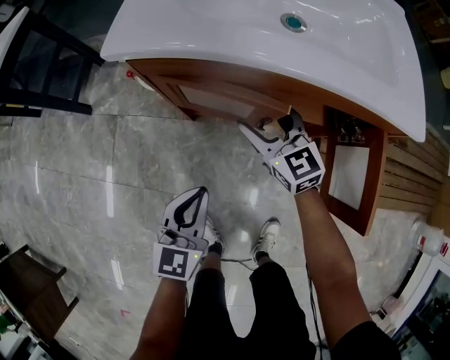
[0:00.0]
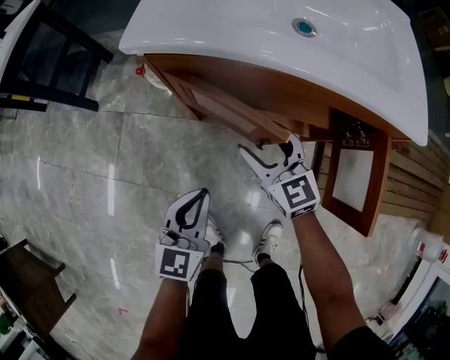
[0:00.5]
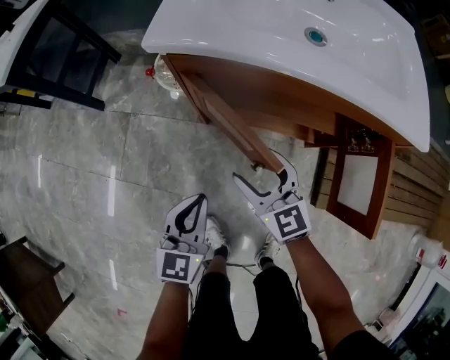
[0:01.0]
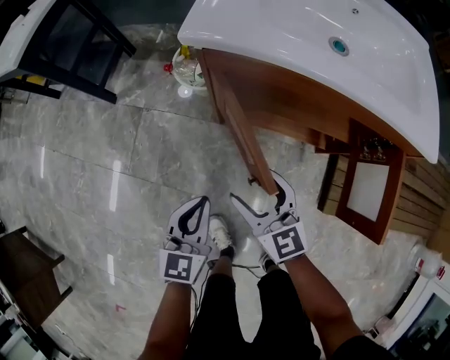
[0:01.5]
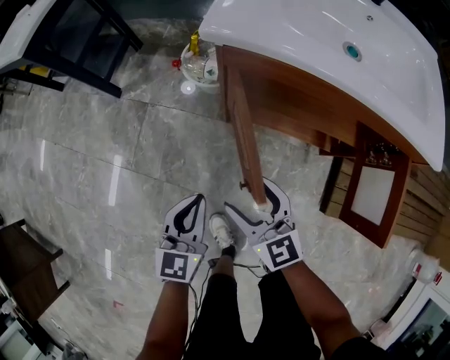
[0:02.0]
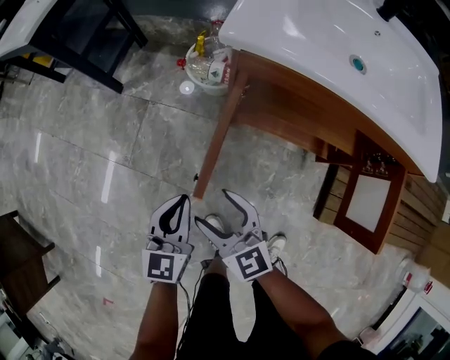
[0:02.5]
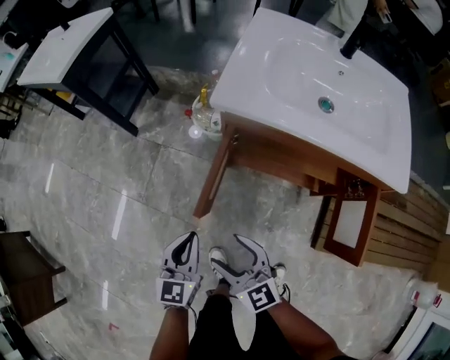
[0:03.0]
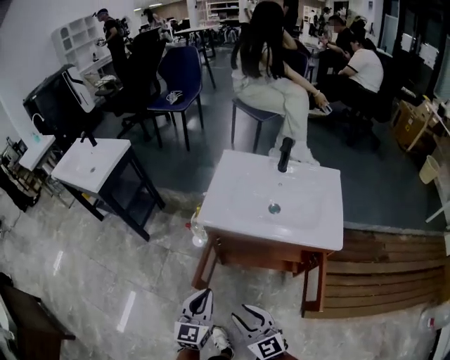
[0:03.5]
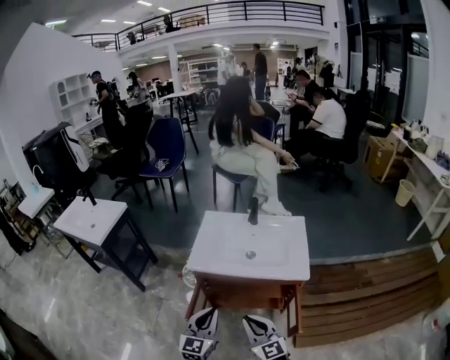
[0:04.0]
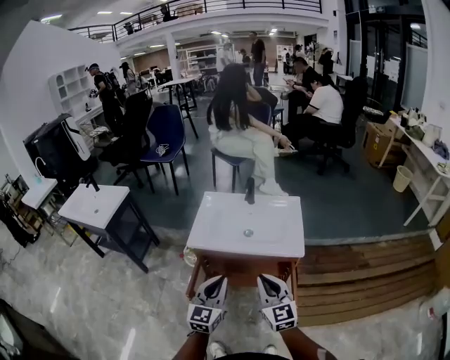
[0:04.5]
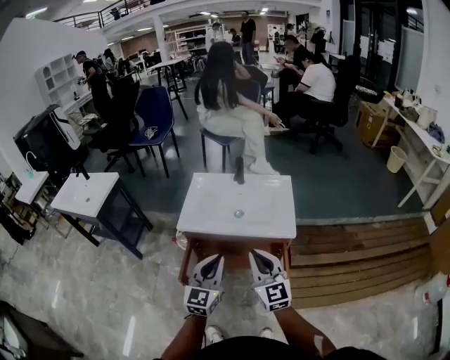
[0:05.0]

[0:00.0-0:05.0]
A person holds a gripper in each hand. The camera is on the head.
0:00.0 to 0:02.5: The right gripper is displaced to the left and backward by roughly 30 cm, while the left gripper heads to the left, covering some 15 cm.
0:02.5 to 0:05.0: The grippers both shift upward by some 40 cm. The left gripper changes its angle by roughly 30 degrees. The right gripper rotates approximately 40 degrees, and closes.

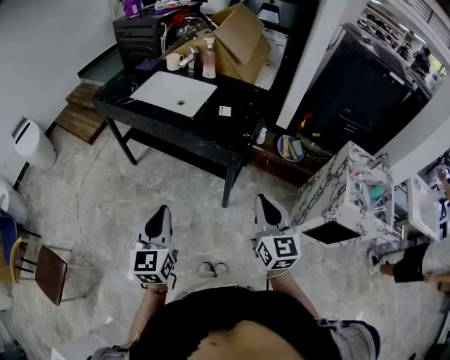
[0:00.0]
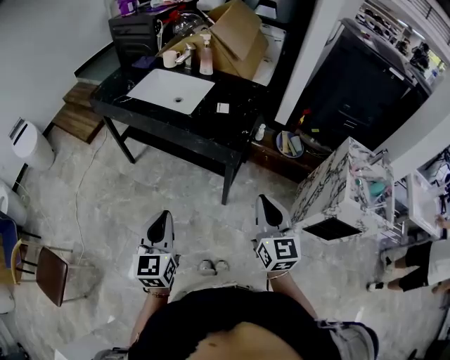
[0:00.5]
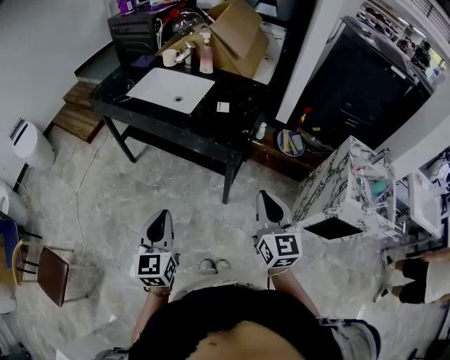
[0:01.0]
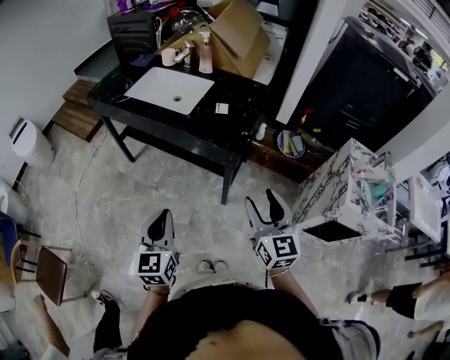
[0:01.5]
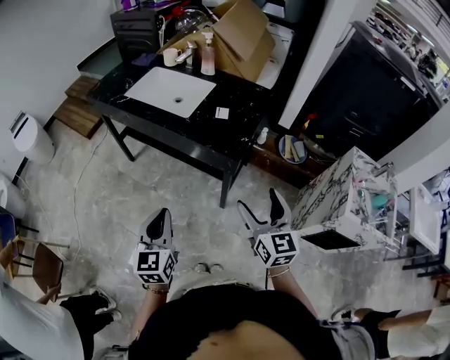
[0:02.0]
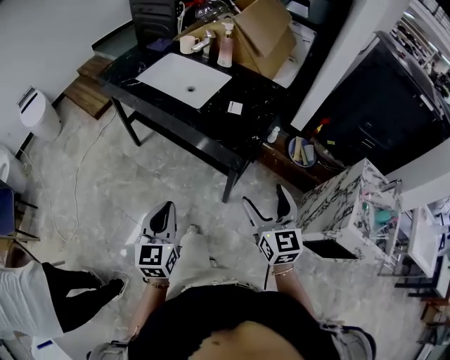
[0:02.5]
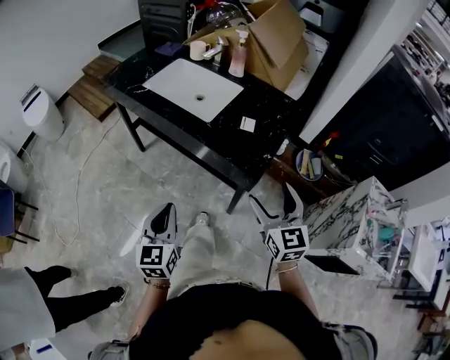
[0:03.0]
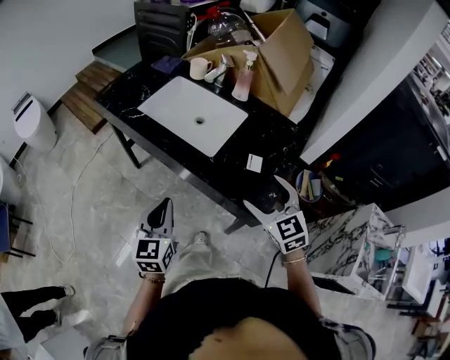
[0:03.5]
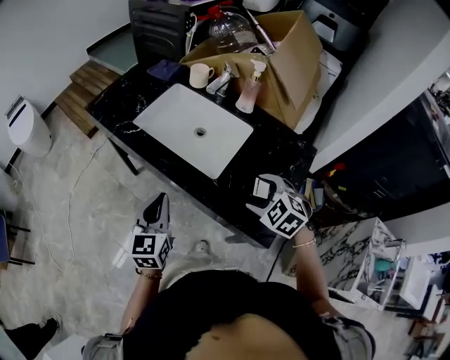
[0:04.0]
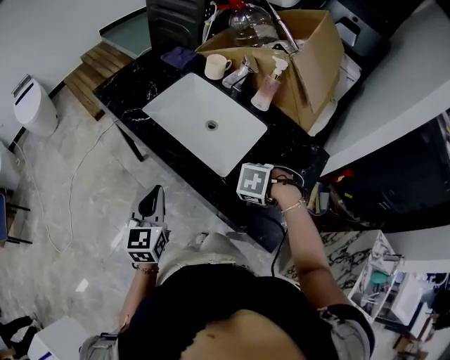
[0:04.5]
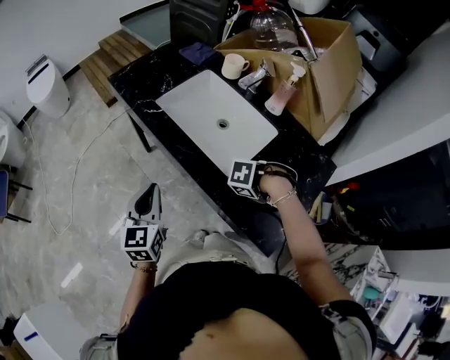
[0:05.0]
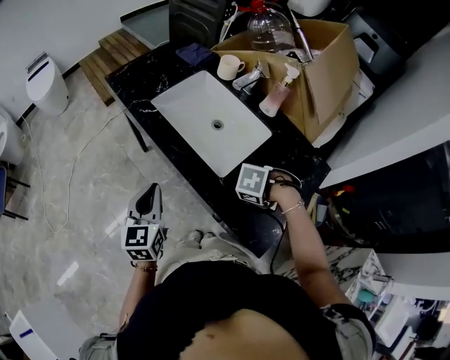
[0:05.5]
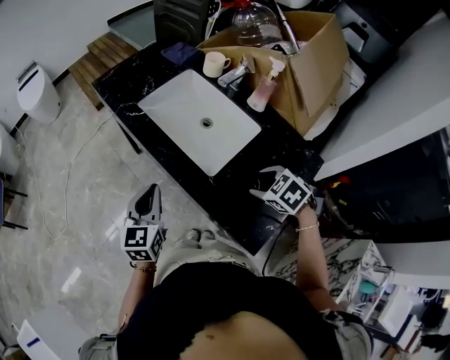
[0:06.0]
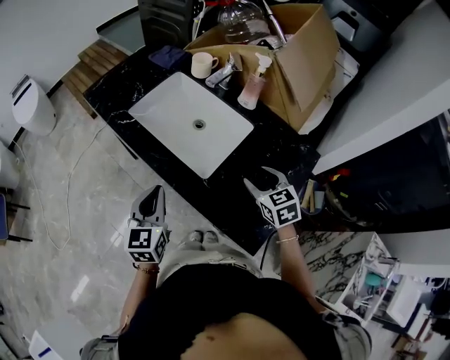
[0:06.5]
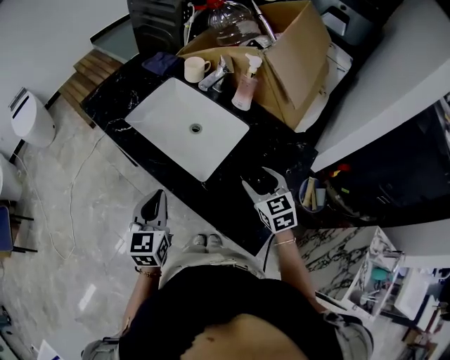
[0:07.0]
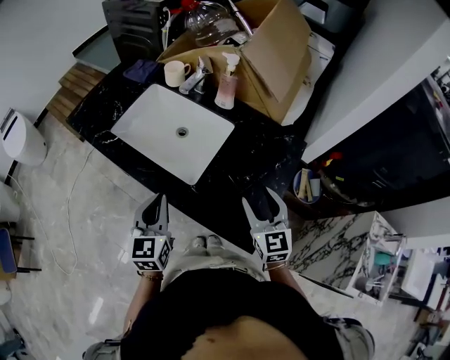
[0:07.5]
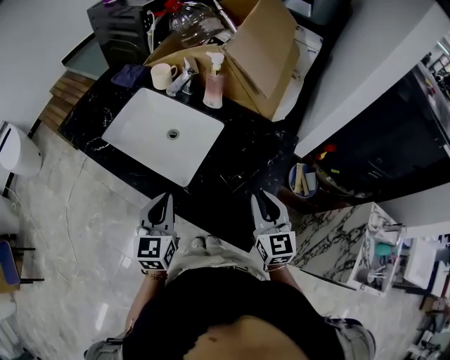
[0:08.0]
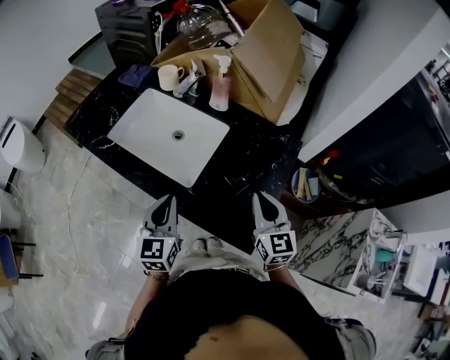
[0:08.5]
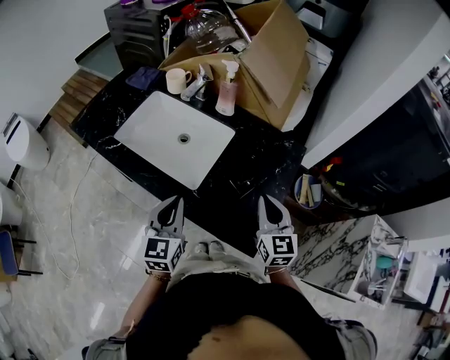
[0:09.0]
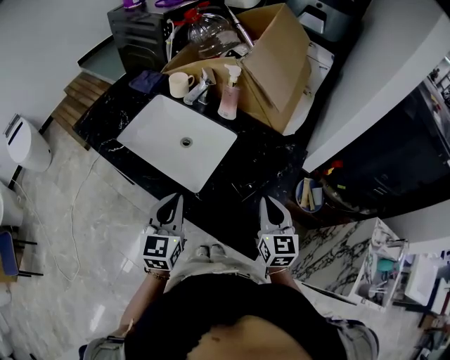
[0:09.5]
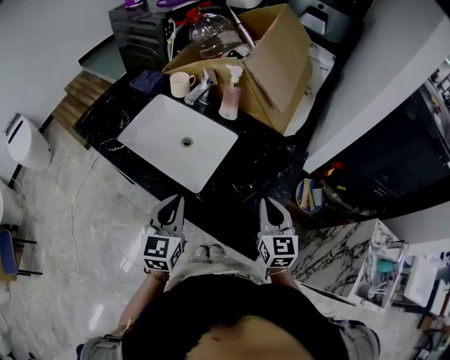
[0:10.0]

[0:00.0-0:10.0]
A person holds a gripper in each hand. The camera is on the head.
0:00.0 to 0:02.0: The right gripper is displaced forward by about 5 cm, and opens up. Meanwhile the left gripper changes place by some 5 cm.
0:02.0 to 0:04.0: Both grippers move forward, some 35 cm. The right gripper tips its fingers downward by roughly 40 degrees.
0:04.0 to 0:06.0: The right gripper travels downward and back again, some 10 cm each way.
0:06.0 to 0:08.0: The left gripper ends up approximately 10 cm from where it was; the right gripper moves roughly 10 cm, and points its fingers about 50 degrees further upward.
0:08.0 to 0:10.0: The grippers stay close to where they were, moving slightly.

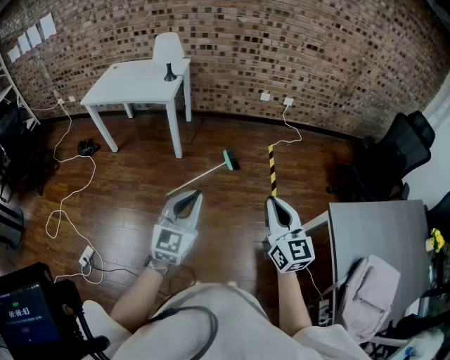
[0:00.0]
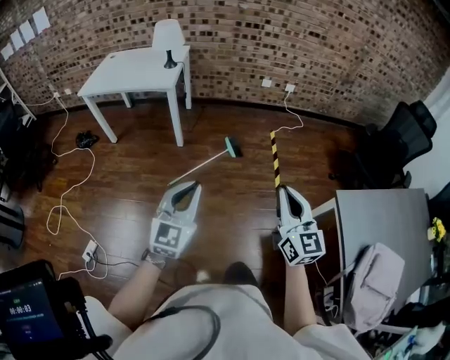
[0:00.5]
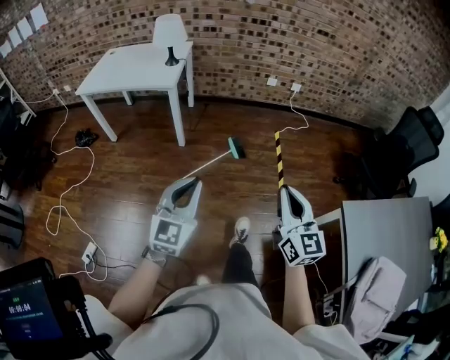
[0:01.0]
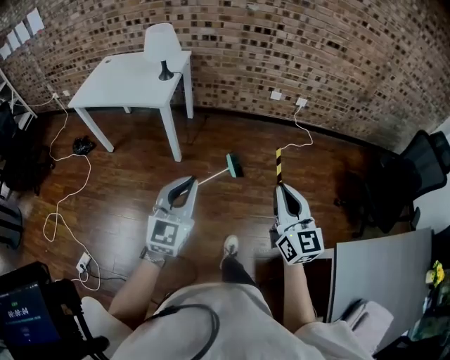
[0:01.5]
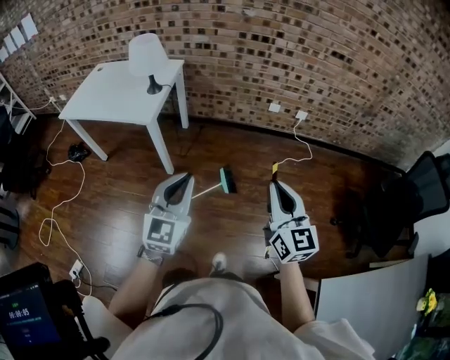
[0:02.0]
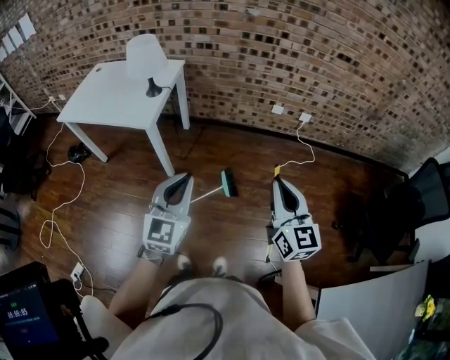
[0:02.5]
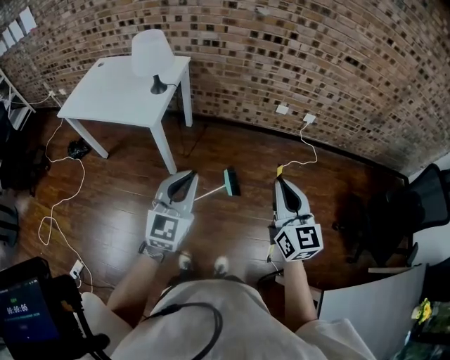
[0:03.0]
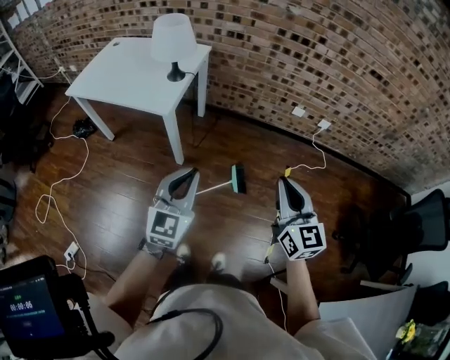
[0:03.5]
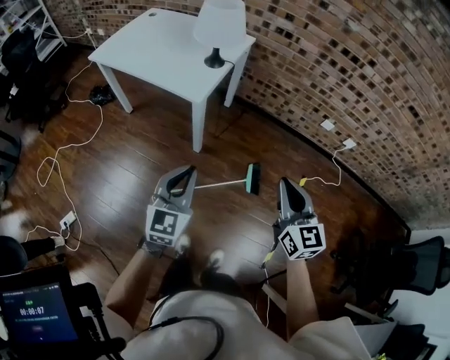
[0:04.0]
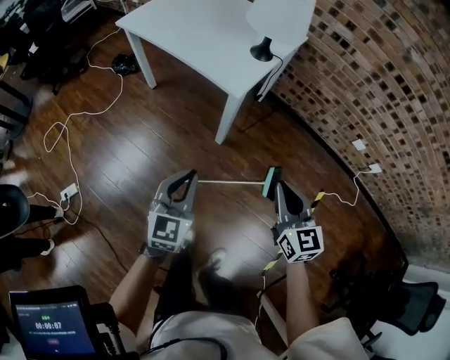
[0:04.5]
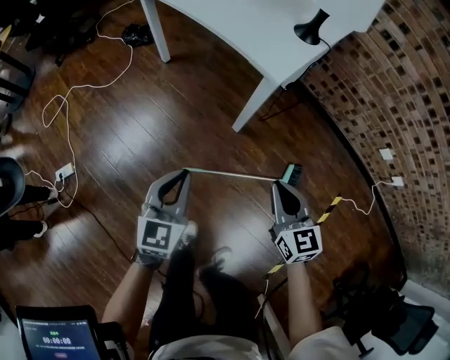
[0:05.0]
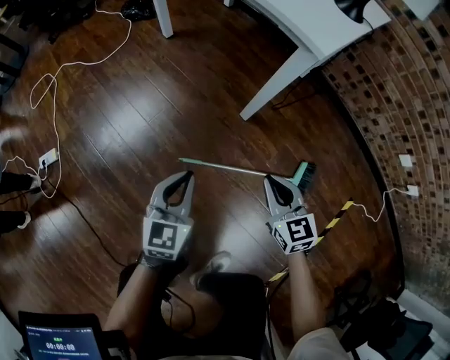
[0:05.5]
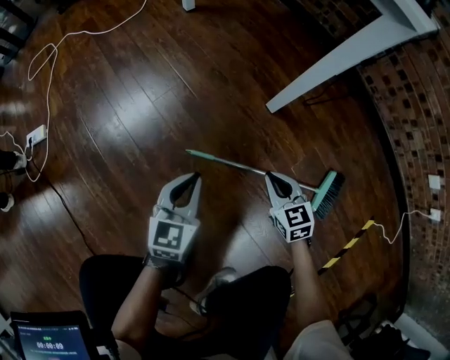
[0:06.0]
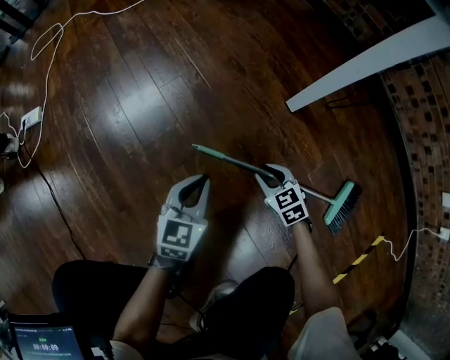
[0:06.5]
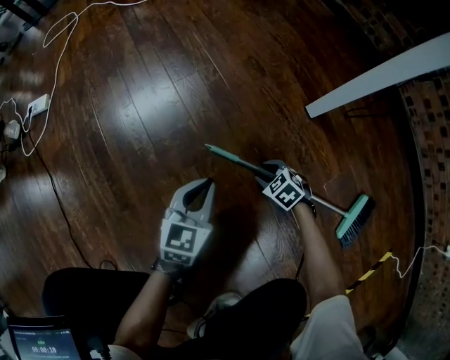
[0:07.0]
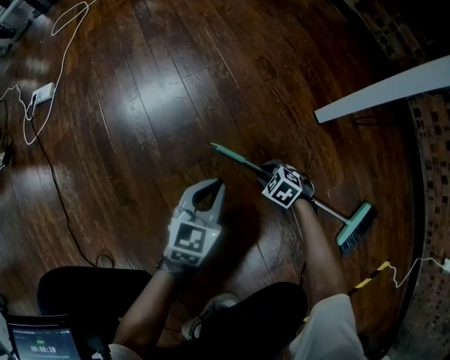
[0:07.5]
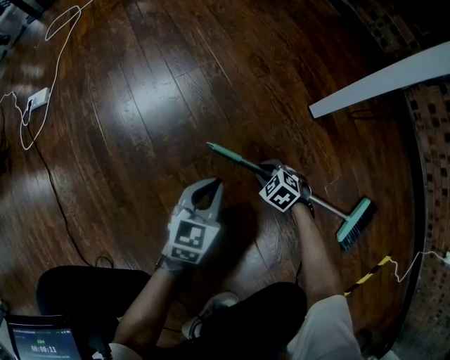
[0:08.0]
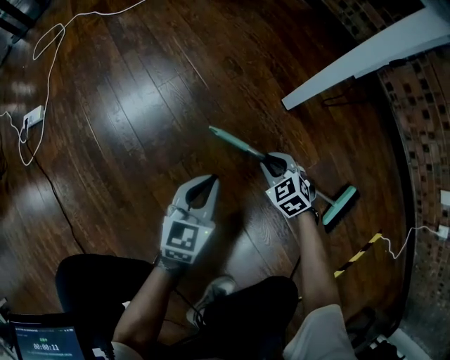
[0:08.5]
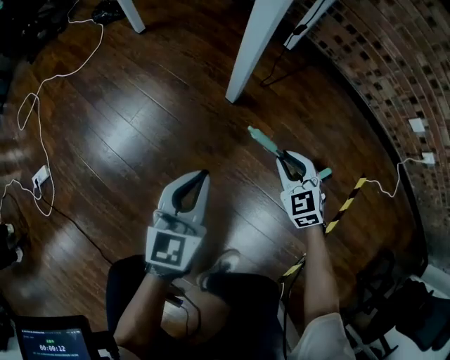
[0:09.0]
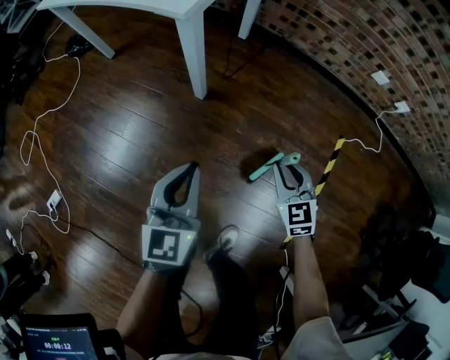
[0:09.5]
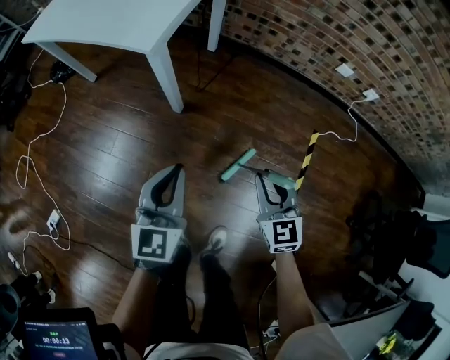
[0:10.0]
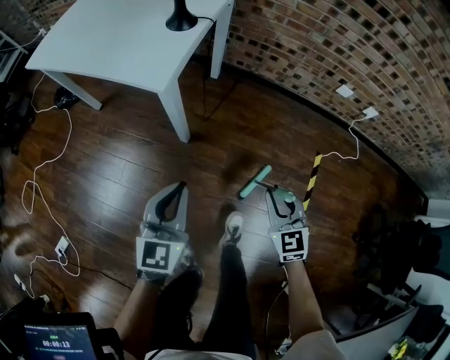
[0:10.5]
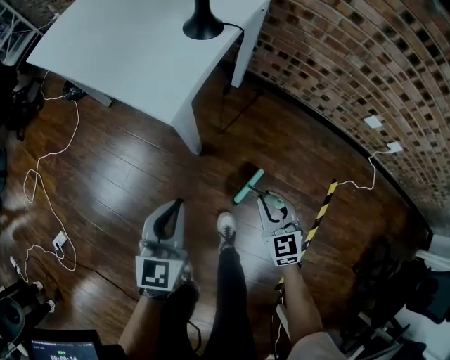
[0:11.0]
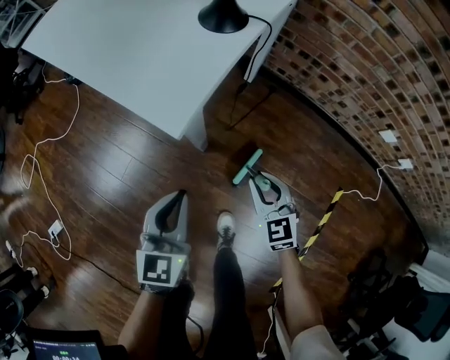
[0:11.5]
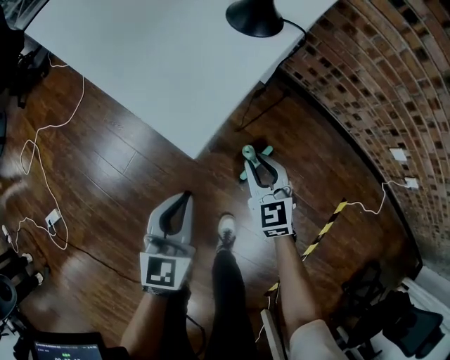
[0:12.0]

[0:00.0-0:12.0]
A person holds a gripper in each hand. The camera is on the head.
0:00.0 to 0:02.0: The two grippers go about 40 cm forward.
0:02.0 to 0:04.0: The right gripper shifts some 25 cm forward, to the left and downward; the left gripper heads to the left, forward and downward, covering approximately 25 cm.
0:04.0 to 0:06.0: Both grippers travel together downward, about 70 cm. The right gripper rotates roughly 50 degrees, while the left gripper changes its angle by roughly 30 degrees.
0:06.0 to 0:08.0: The left gripper travels downward by some 20 cm, while the right gripper heads downward, covering approximately 30 cm, and rotates some 50 degrees.
0:08.0 to 0:10.0: The two grippers go some 60 cm upward. The right gripper tilts its fingers about 40 degrees upward, while the left gripper rotates some 30 degrees.
0:10.0 to 0:12.0: The left gripper travels forward and downward by approximately 25 cm. Meanwhile the right gripper travels forward and downward by about 35 cm, and changes its angle by approximately 20 degrees.
